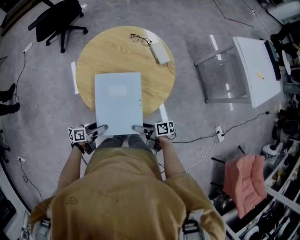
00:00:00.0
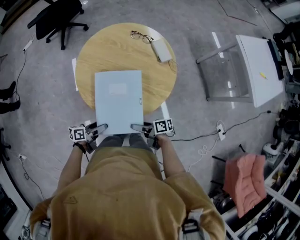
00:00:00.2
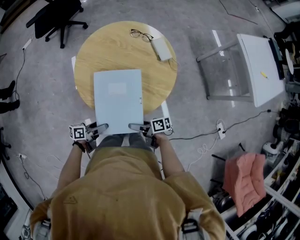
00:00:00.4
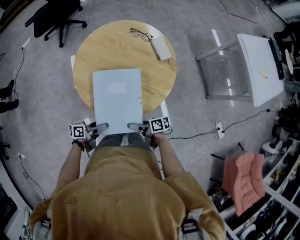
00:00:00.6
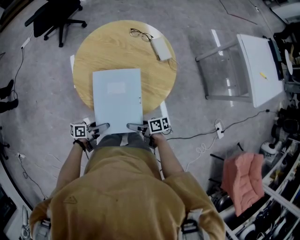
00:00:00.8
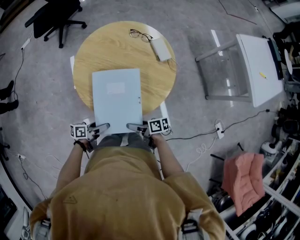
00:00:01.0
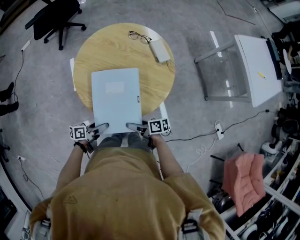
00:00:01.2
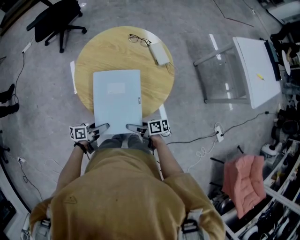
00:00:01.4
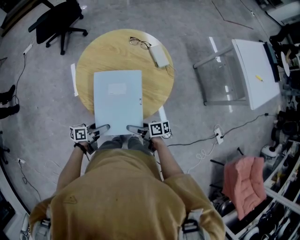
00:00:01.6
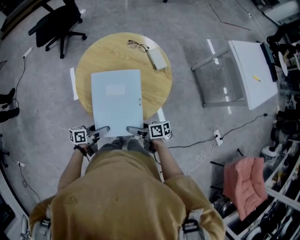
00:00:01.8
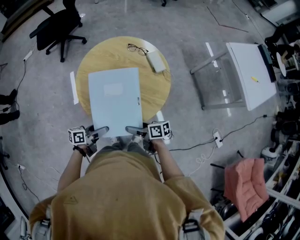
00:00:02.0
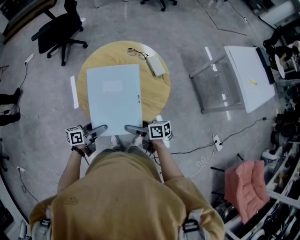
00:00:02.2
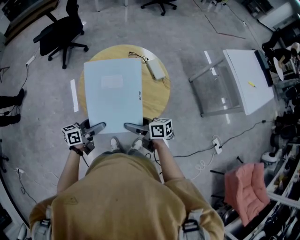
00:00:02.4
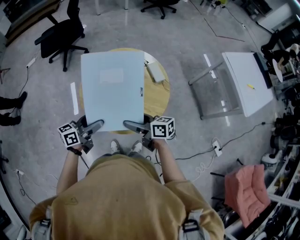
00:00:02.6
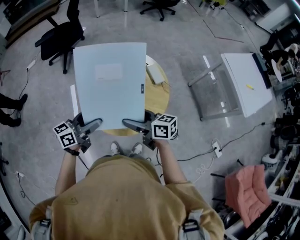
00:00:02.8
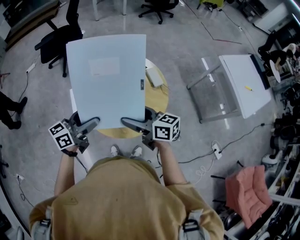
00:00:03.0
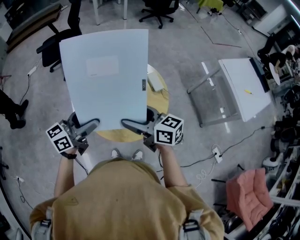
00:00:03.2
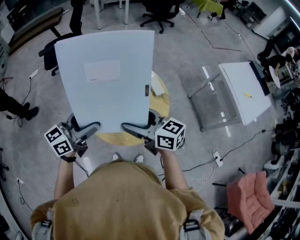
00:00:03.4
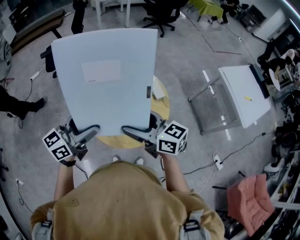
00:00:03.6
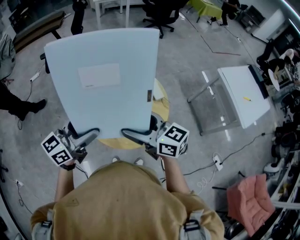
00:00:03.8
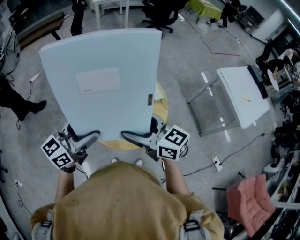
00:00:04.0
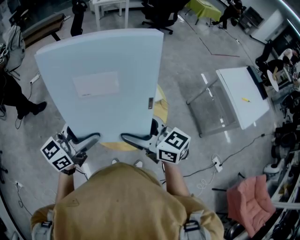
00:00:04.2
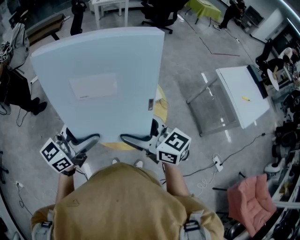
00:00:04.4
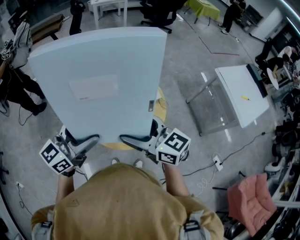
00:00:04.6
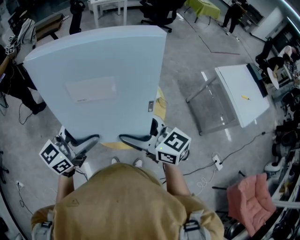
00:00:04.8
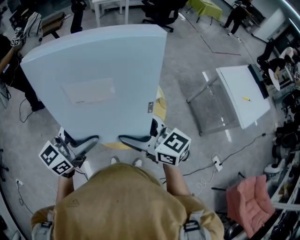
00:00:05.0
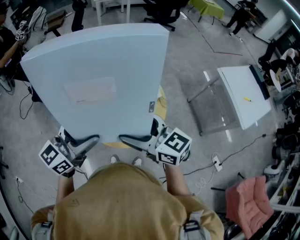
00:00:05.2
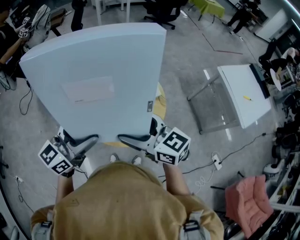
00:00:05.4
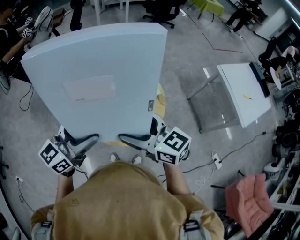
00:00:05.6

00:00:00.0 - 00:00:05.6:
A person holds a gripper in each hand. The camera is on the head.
00:00:00.0 - 00:00:01.4: There are only small adjustments of the grippers.
00:00:01.4 - 00:00:02.8: The two grippers go roughly 25 cm upward. The right gripper swivels some 40 degrees. The left gripper swivels roughly 40 degrees.
00:00:02.8 - 00:00:04.2: Both grippers travel together upward, approximately 15 cm. The right gripper rotates approximately 30 degrees. Meanwhile the left gripper swivels about 20 degrees.
00:00:04.2 - 00:00:05.6: The grippers move only a little.

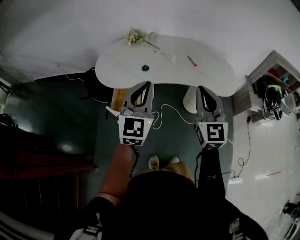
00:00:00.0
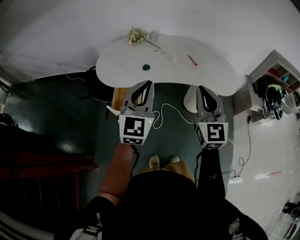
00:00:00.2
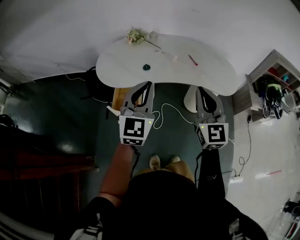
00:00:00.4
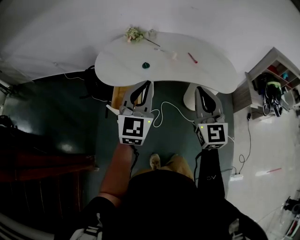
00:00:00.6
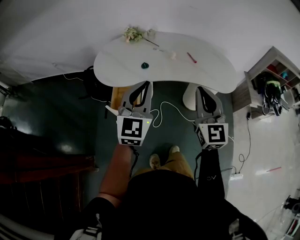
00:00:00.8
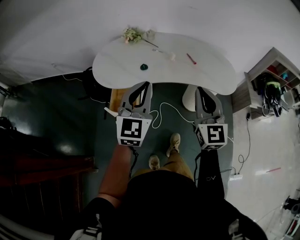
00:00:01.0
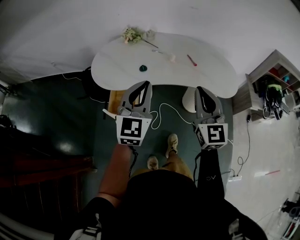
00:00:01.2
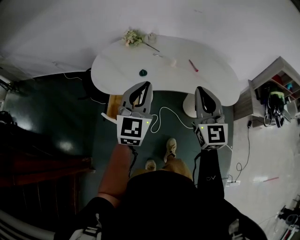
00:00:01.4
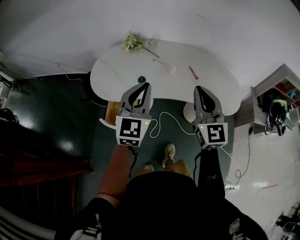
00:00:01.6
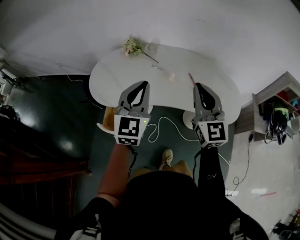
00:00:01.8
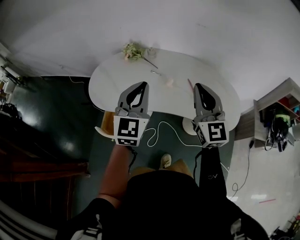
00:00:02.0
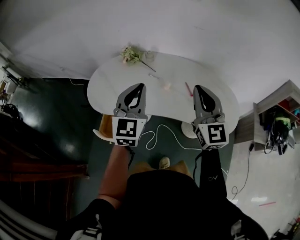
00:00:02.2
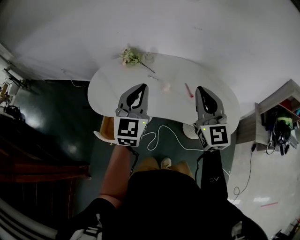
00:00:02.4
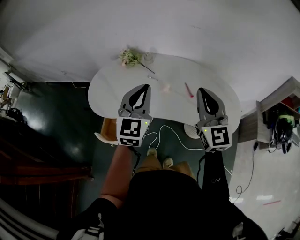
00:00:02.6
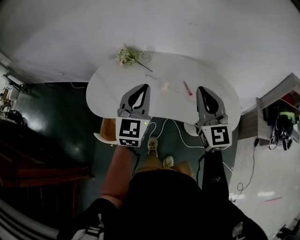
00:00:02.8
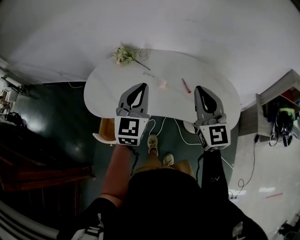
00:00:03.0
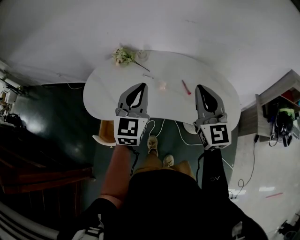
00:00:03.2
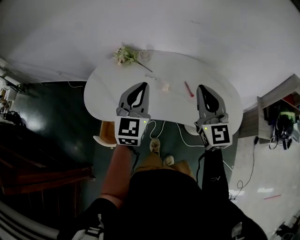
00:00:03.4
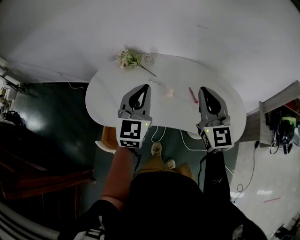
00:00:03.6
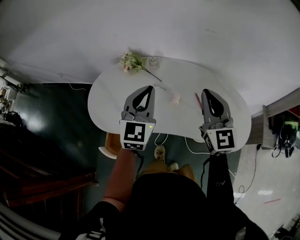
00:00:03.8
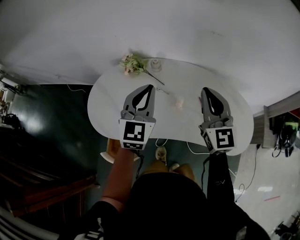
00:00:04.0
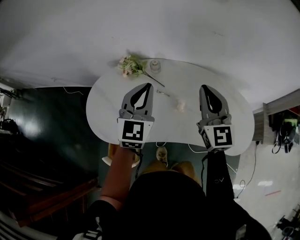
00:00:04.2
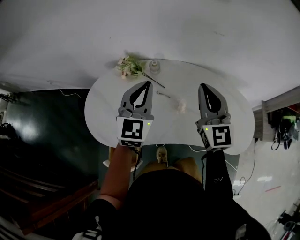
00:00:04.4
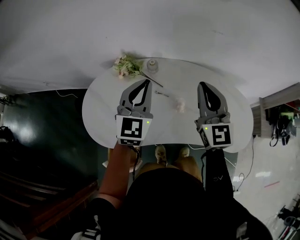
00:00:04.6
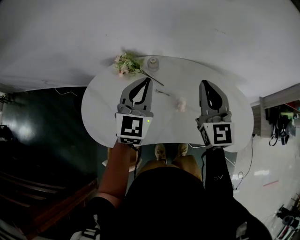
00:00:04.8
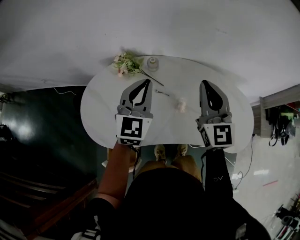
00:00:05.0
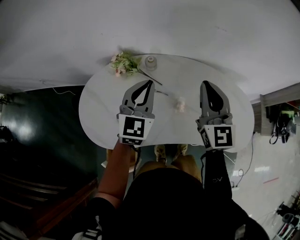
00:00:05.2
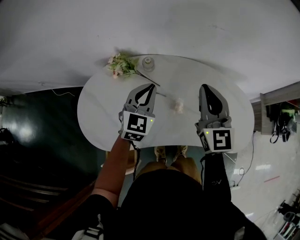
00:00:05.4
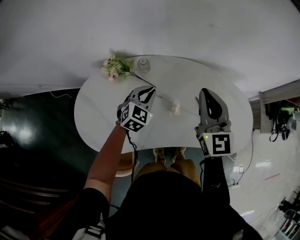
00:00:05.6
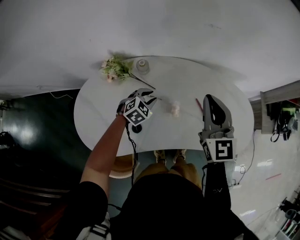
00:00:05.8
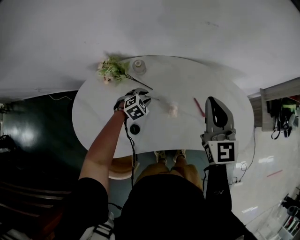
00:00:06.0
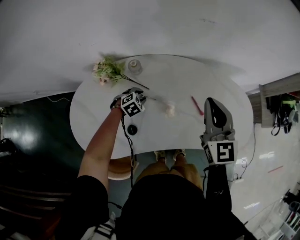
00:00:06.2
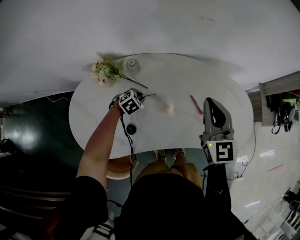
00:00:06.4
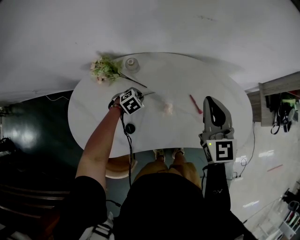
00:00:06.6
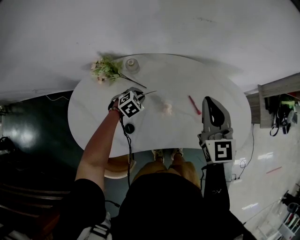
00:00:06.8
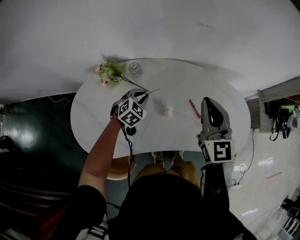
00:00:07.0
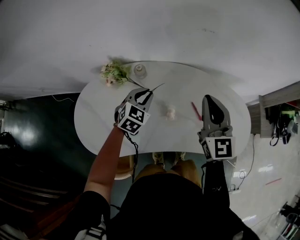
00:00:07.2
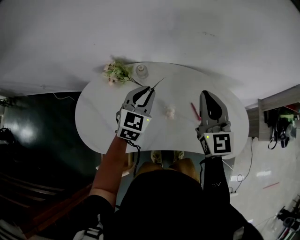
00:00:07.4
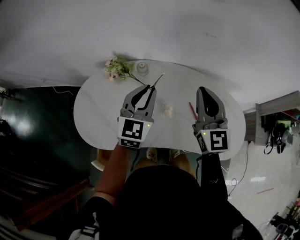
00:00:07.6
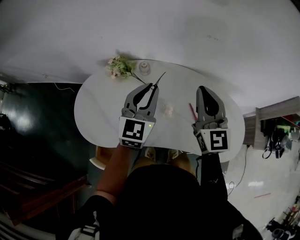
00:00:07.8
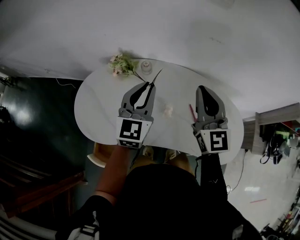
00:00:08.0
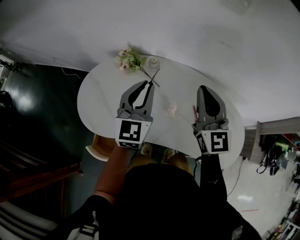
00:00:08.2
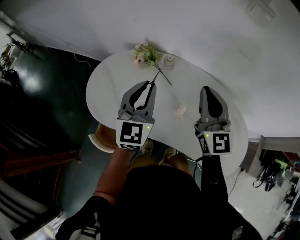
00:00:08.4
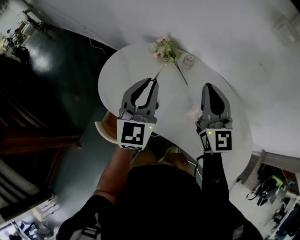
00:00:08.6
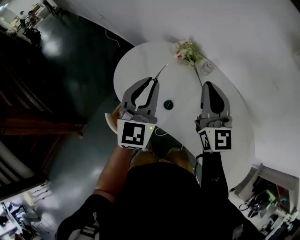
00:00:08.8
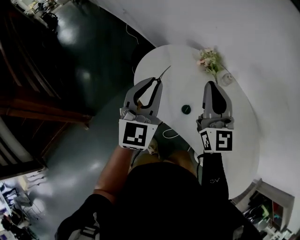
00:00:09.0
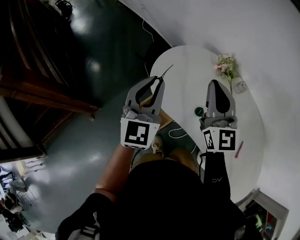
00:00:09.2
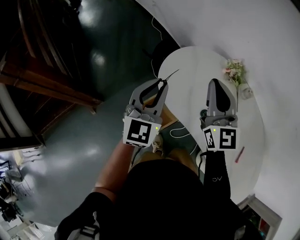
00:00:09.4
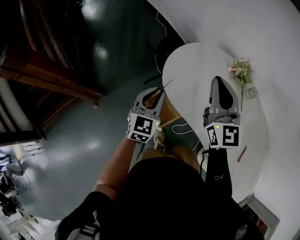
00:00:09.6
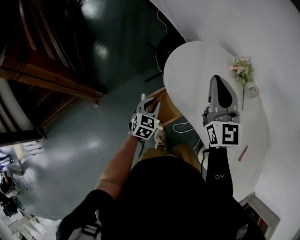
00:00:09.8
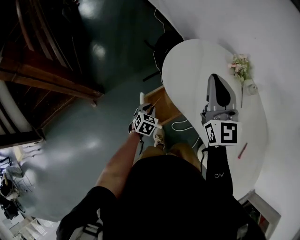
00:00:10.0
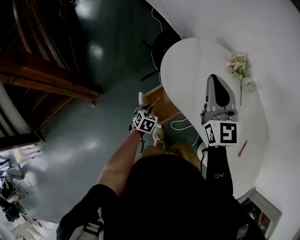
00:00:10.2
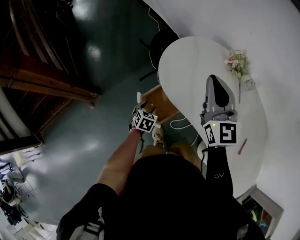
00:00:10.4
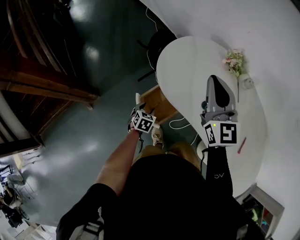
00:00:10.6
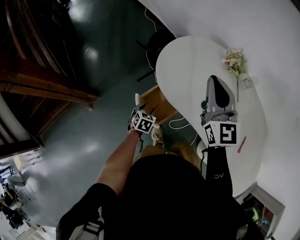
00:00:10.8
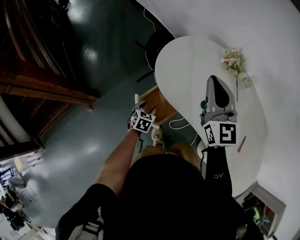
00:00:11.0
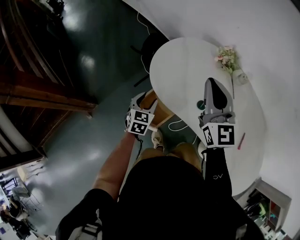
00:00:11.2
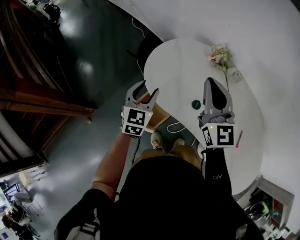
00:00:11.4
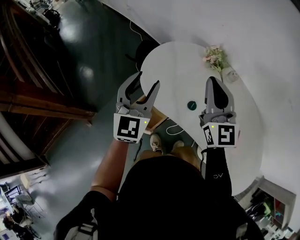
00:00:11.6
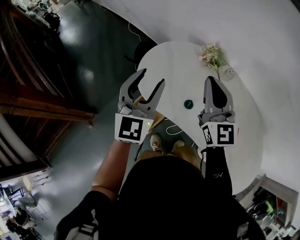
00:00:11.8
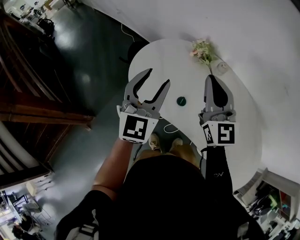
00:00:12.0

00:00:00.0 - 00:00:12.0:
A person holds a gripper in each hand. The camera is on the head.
00:00:00.0 - 00:00:01.6: Both grippers travel together forward, about 15 cm.
00:00:01.6 - 00:00:03.0: The left gripper travels forward and to the right by approximately 15 cm. Meanwhile the right gripper travels to the right and forward by approximately 15 cm.
00:00:03.0 - 00:00:04.4: The grippers both shift forward and to the left by approximately 25 cm.
00:00:04.4 - 00:00:06.0: The right gripper moves to the right and downward, some 10 cm. Meanwhile the left gripper shifts roughly 35 cm downward, points its fingers about 50 degrees further downward, and opens up.
00:00:06.0 - 00:00:07.6: The right gripper is displaced upward by approximately 5 cm. Meanwhile the left gripper is displaced upward by about 30 cm, and angles its fingers upward, by approximately 50 degrees.
00:00:07.6 - 00:00:09.0: The left gripper moves approximately 30 cm, and turns by roughly 40 degrees. The right gripper moves roughly 30 cm, and rotates approximately 40 degrees.
00:00:09.0 - 00:00:10.4: The right gripper goes some 10 cm to the left; the left gripper travels downward by roughly 40 cm, tilts its fingers roughly 60 degrees downward, and opens up.
00:00:10.4 - 00:00:12.0: The right gripper is displaced to the right by about 15 cm; the left gripper travels upward and to the right by some 50 cm, and points its fingers about 50 degrees further upward.

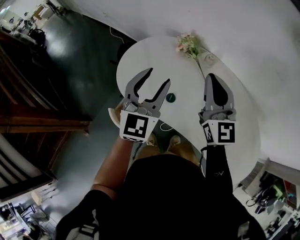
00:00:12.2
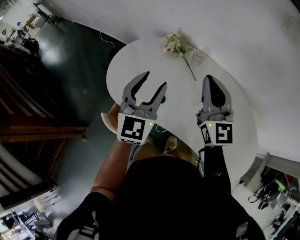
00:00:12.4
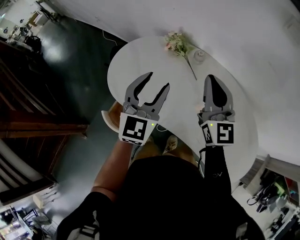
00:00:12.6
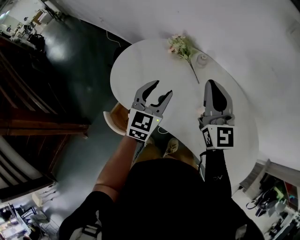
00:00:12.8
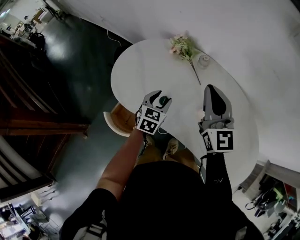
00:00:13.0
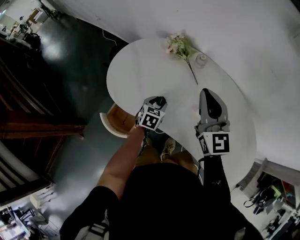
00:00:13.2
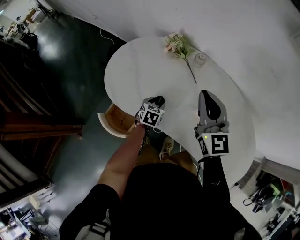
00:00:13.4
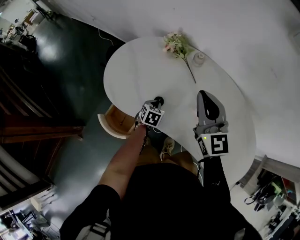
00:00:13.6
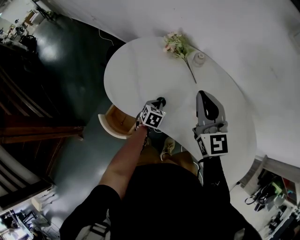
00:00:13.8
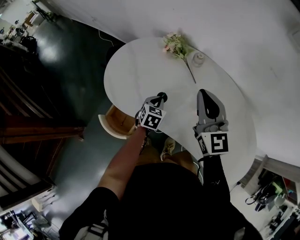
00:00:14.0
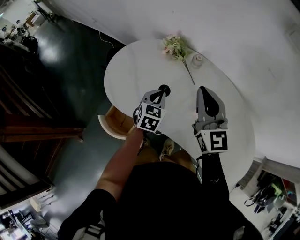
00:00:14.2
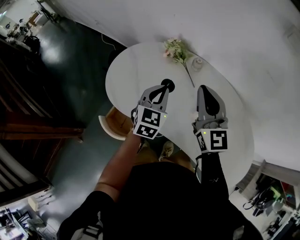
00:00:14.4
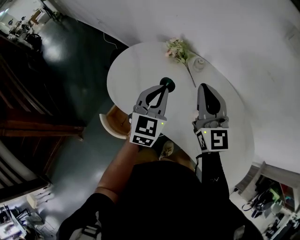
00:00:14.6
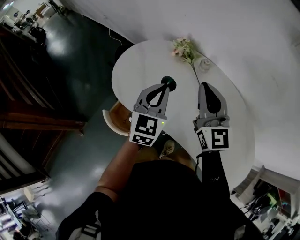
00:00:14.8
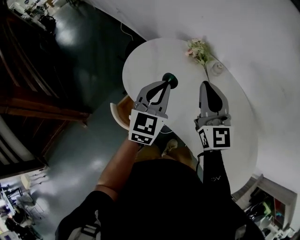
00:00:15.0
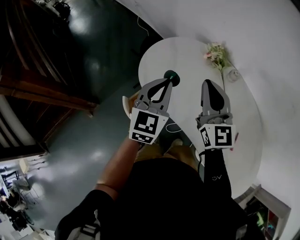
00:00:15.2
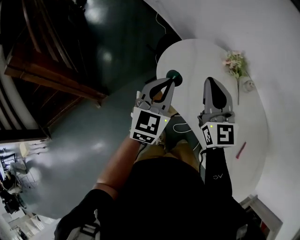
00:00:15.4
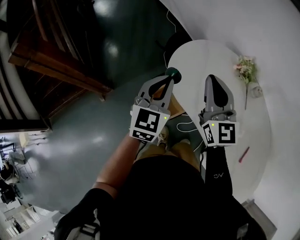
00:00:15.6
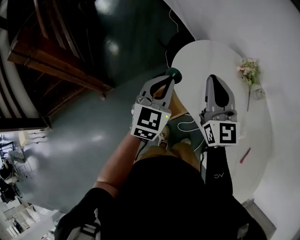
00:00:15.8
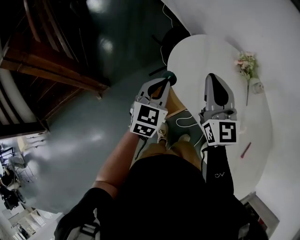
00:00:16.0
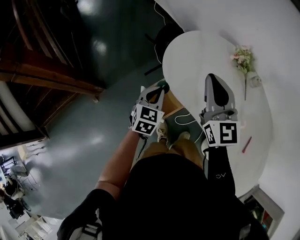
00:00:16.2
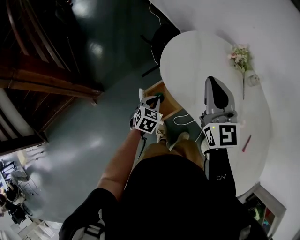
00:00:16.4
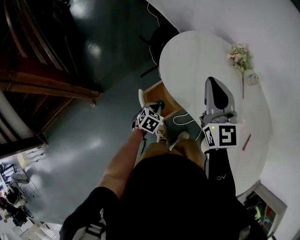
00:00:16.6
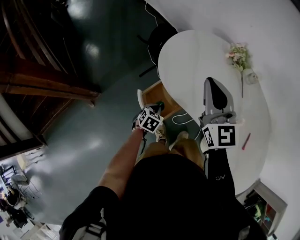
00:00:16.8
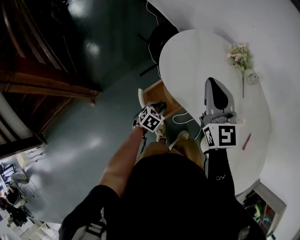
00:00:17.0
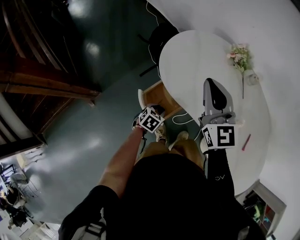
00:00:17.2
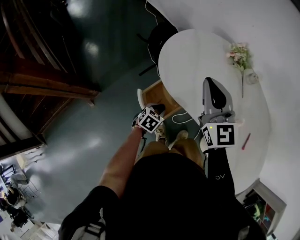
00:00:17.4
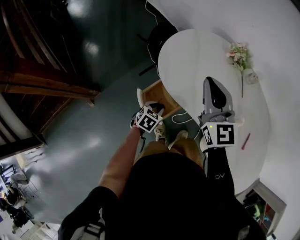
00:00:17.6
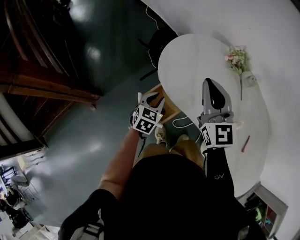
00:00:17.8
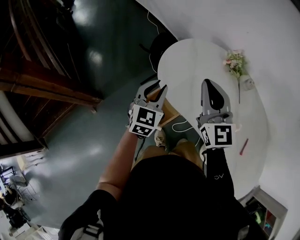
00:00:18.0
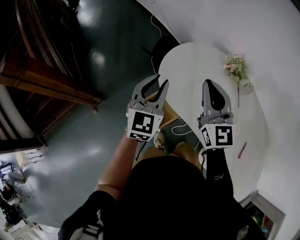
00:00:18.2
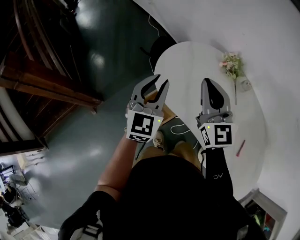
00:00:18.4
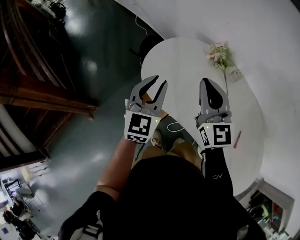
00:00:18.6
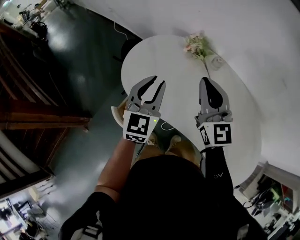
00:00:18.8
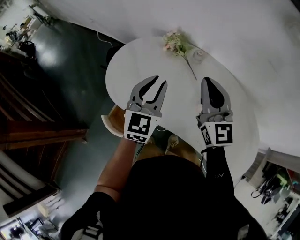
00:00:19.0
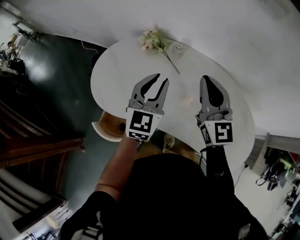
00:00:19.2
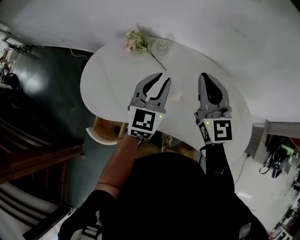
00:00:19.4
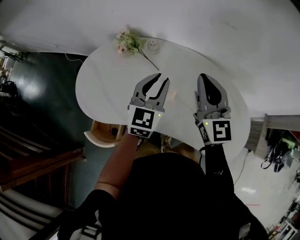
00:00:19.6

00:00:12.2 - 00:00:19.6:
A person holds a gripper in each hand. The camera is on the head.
00:00:12.2 - 00:00:13.6: The right gripper is displaced downward by roughly 5 cm. Meanwhile the left gripper goes about 35 cm downward, tips its fingers downward by roughly 50 degrees, and closes up.
00:00:13.6 - 00:00:15.2: The right gripper travels to the left by roughly 10 cm. Meanwhile the left gripper goes some 30 cm upward, and tilts its fingers roughly 40 degrees upward.
00:00:15.2 - 00:00:16.6: The left gripper moves downward and to the left, roughly 35 cm, and tilts its fingers some 40 degrees downward; the right gripper is displaced to the left by some 15 cm.
00:00:16.6 - 00:00:18.2: The left gripper shifts approximately 30 cm upward, and tips its fingers upward by about 50 degrees.
00:00:18.2 - 00:00:19.6: The left gripper changes place by some 40 cm, and rotates some 40 degrees. Meanwhile the right gripper changes place by about 40 cm, and swivels some 40 degrees.
